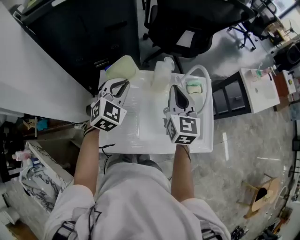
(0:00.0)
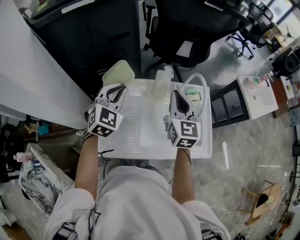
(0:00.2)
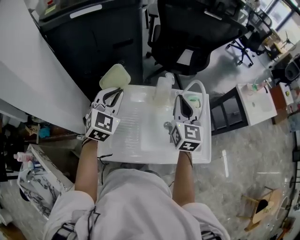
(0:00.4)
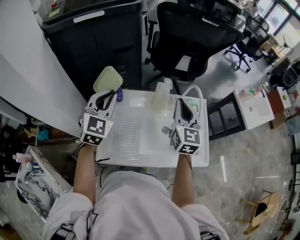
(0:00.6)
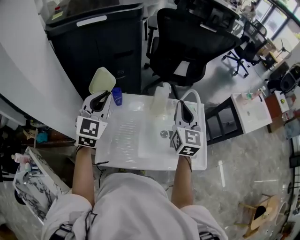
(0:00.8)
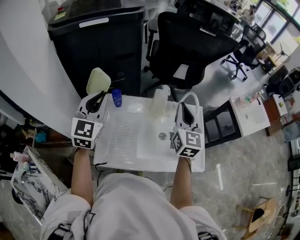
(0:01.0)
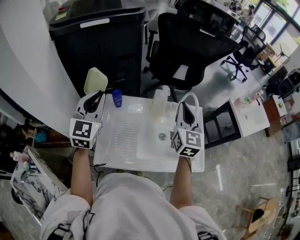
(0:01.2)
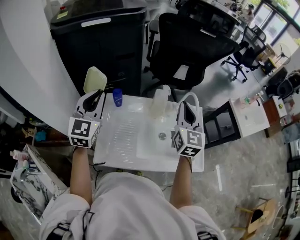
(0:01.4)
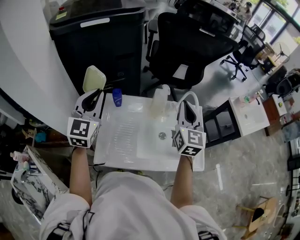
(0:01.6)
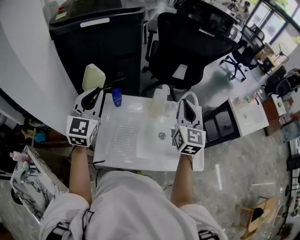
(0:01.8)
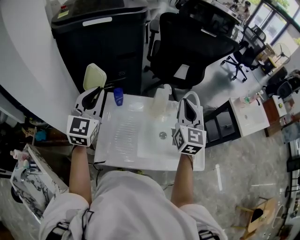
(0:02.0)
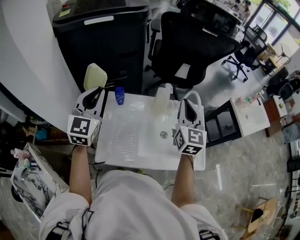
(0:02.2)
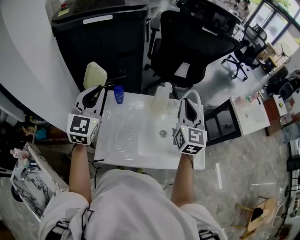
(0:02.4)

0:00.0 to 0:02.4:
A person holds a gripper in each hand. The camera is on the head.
0:00.0 to 0:01.2: The left gripper heads upward, to the left and backward, covering some 20 cm, and changes its angle by approximately 30 degrees, while the right gripper goes about 10 cm upward.
0:01.2 to 0:02.4: The grippers make only small movements.

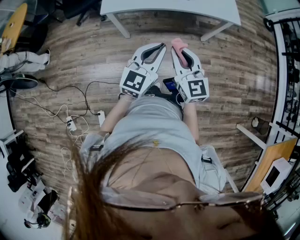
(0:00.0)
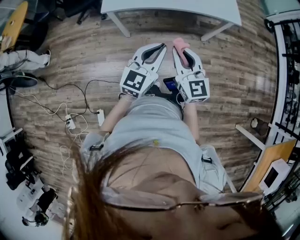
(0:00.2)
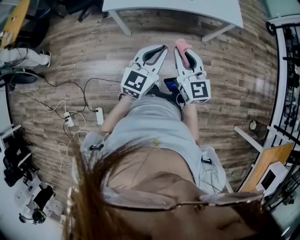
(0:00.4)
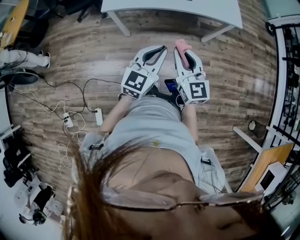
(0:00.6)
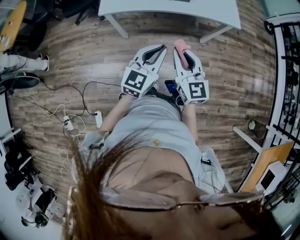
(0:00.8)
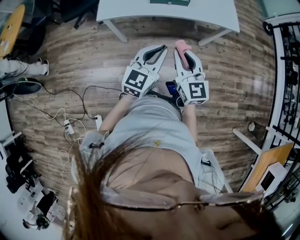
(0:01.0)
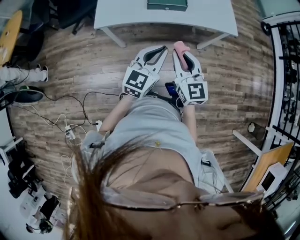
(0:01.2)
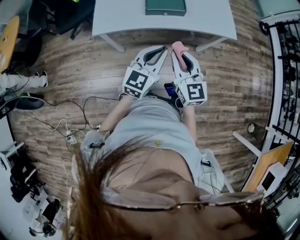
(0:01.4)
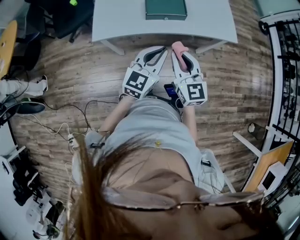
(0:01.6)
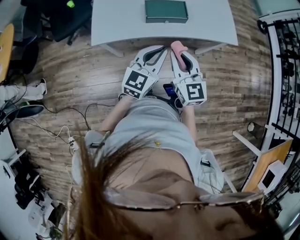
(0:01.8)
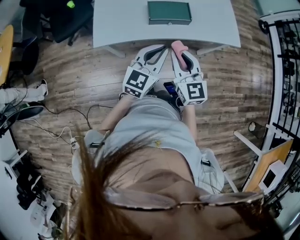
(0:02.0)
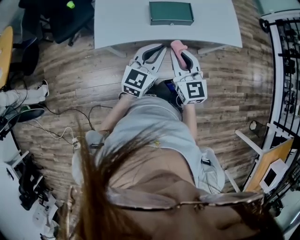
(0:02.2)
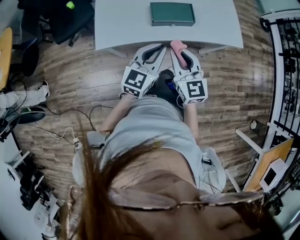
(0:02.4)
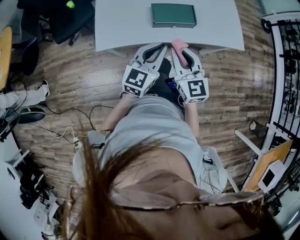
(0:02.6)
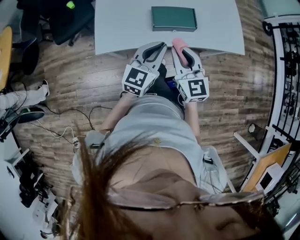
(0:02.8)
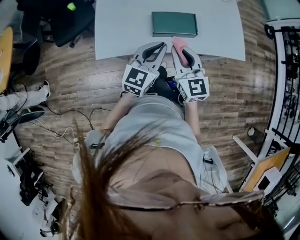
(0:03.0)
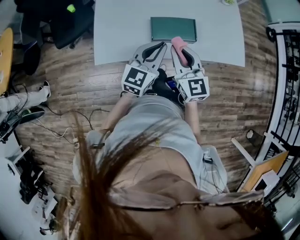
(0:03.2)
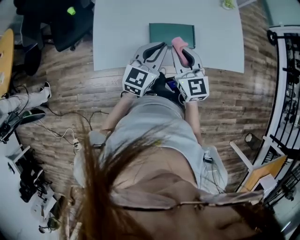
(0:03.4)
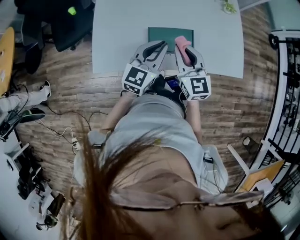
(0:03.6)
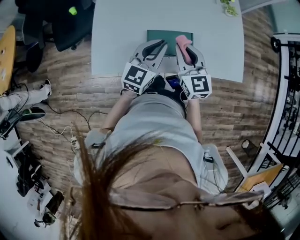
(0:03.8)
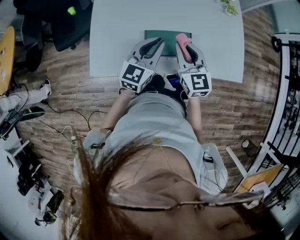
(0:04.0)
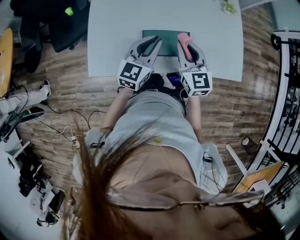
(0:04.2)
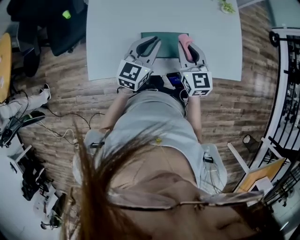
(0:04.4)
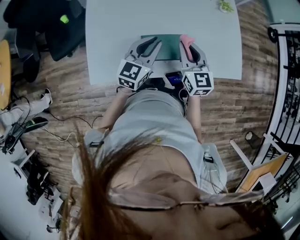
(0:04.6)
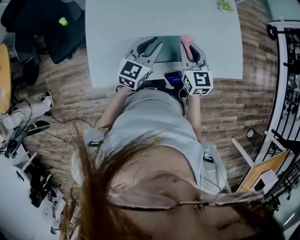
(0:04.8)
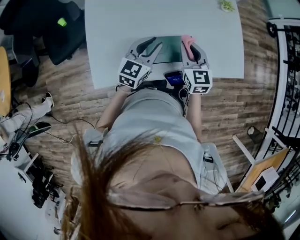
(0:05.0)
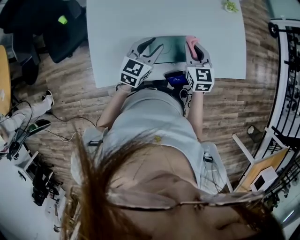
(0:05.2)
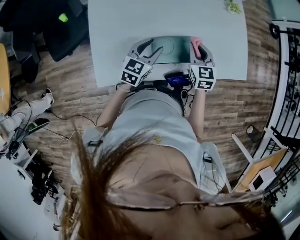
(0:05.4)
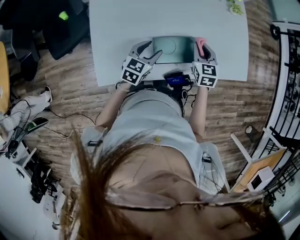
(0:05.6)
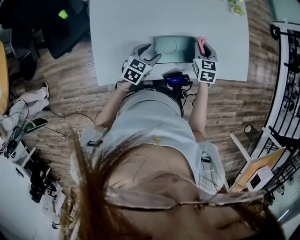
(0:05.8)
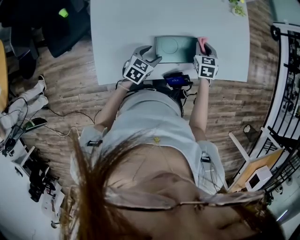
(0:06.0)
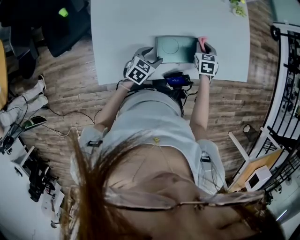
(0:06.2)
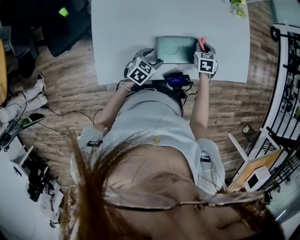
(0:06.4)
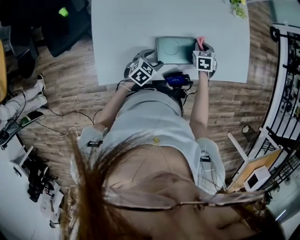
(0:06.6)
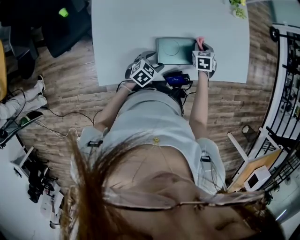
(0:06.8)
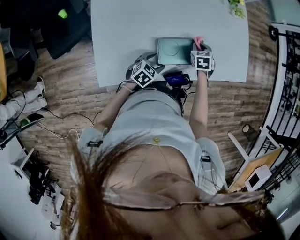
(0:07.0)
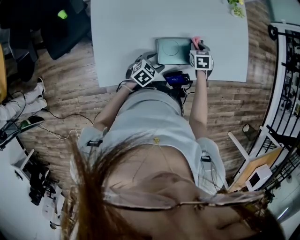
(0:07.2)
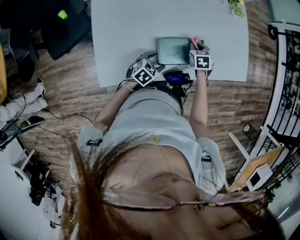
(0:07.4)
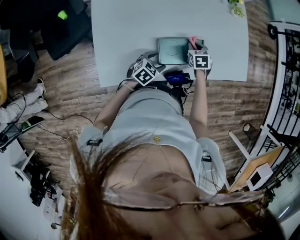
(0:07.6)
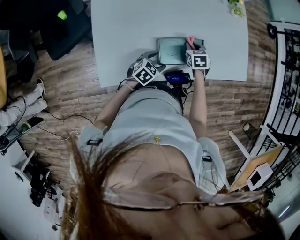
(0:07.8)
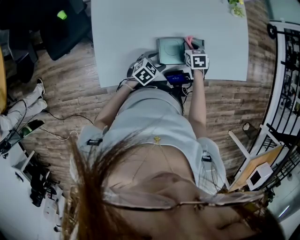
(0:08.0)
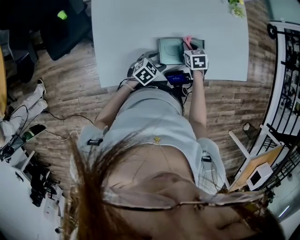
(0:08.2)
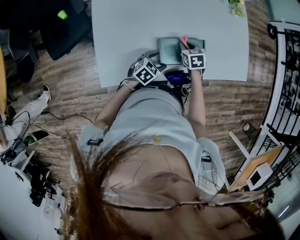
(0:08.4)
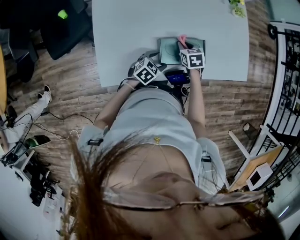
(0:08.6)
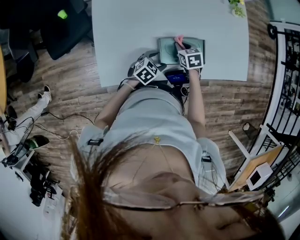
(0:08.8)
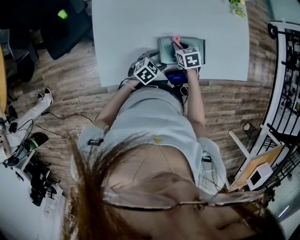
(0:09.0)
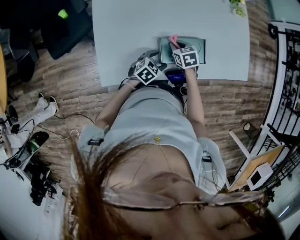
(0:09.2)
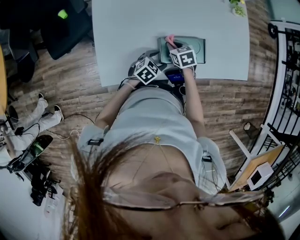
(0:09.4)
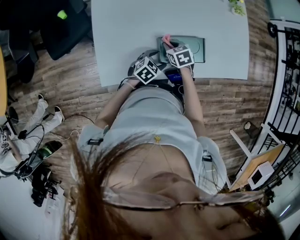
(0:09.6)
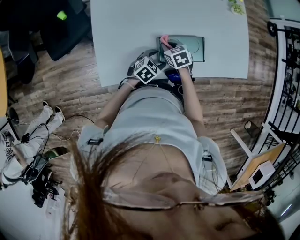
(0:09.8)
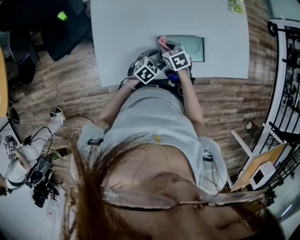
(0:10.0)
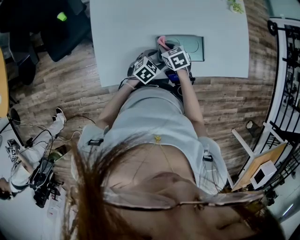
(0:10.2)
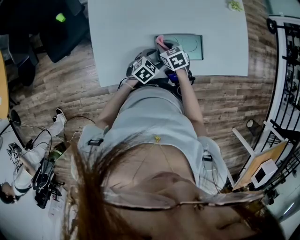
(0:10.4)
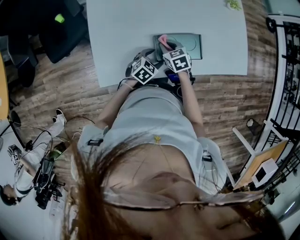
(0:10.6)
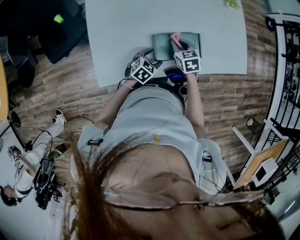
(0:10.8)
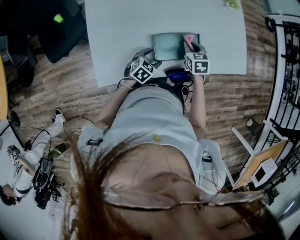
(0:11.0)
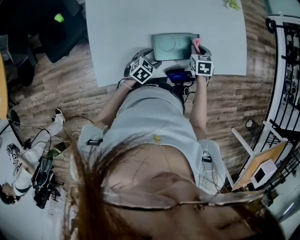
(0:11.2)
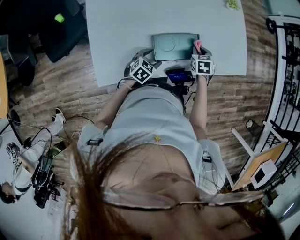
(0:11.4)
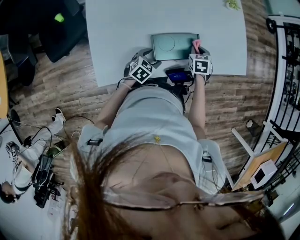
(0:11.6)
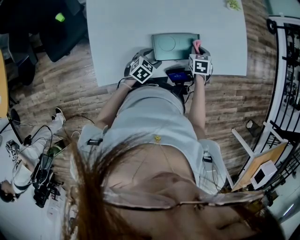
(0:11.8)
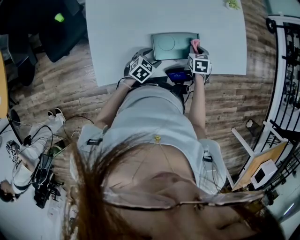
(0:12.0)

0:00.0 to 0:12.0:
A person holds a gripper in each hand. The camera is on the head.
0:00.0 to 0:01.6: Both grippers move forward, about 15 cm.
0:01.6 to 0:03.0: Both grippers travel together forward, about 15 cm.
0:03.0 to 0:04.4: The grippers both shift forward by roughly 15 cm.
0:04.4 to 0:06.0: The left gripper heads downward, covering some 20 cm, swivels roughly 30 degrees, and opens its fingers. Meanwhile the right gripper heads downward and forward, covering approximately 20 cm, and angles its fingers downward, by about 30 degrees.
0:06.0 to 0:07.6: The right gripper moves some 5 cm. The left gripper shifts by about 5 cm.
0:07.6 to 0:09.0: The right gripper shifts roughly 10 cm to the left.
0:09.0 to 0:10.4: The right gripper shifts some 5 cm to the left.
0:10.4 to 0:12.0: The right gripper is displaced to the right by roughly 20 cm, and swivels approximately 30 degrees.

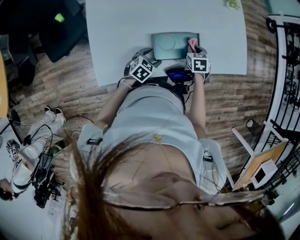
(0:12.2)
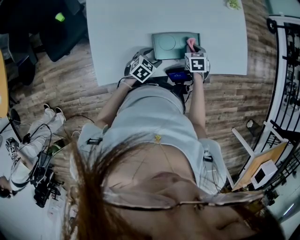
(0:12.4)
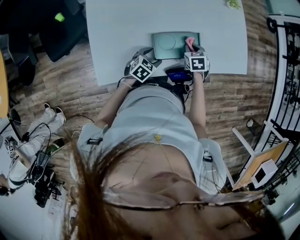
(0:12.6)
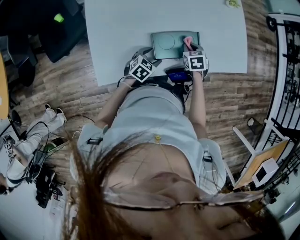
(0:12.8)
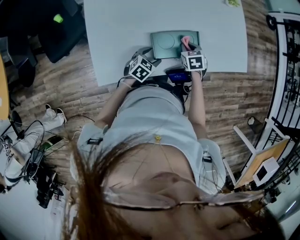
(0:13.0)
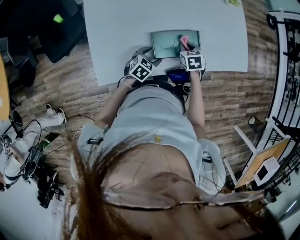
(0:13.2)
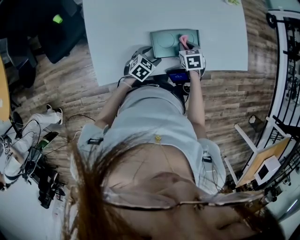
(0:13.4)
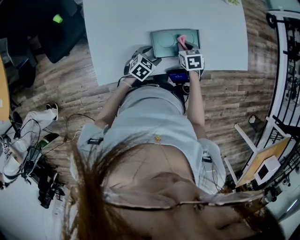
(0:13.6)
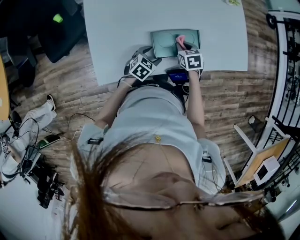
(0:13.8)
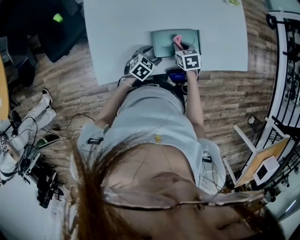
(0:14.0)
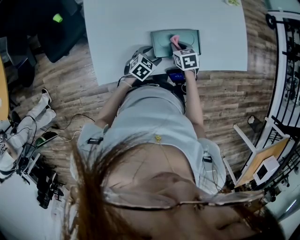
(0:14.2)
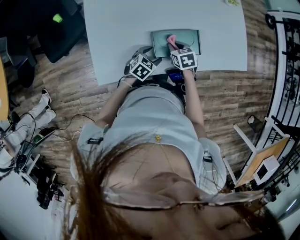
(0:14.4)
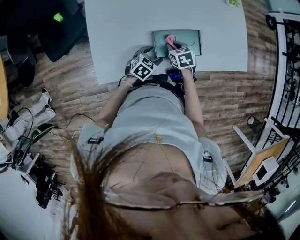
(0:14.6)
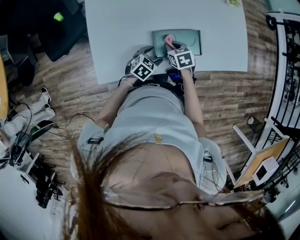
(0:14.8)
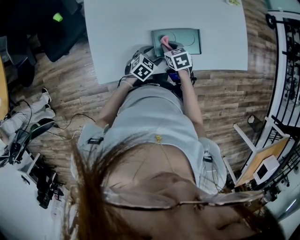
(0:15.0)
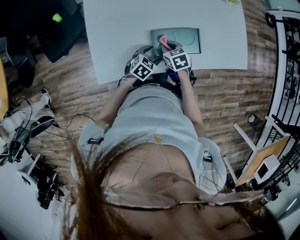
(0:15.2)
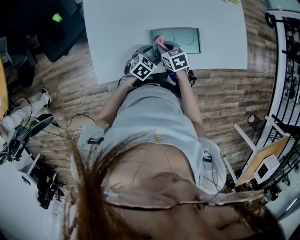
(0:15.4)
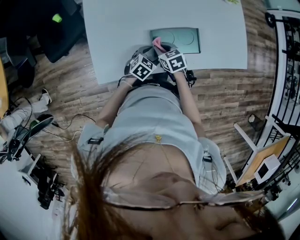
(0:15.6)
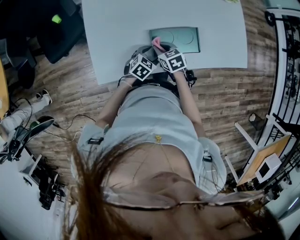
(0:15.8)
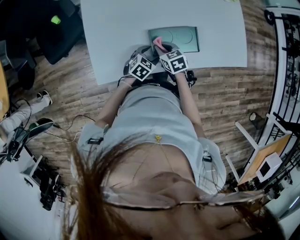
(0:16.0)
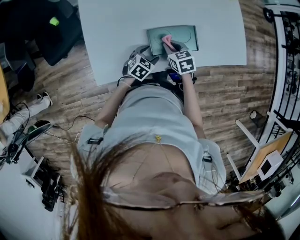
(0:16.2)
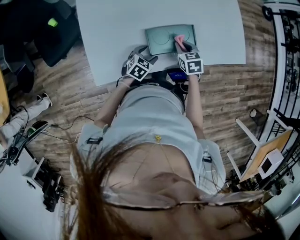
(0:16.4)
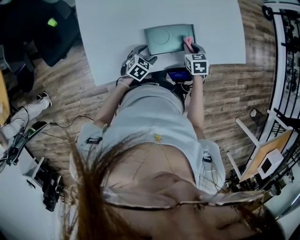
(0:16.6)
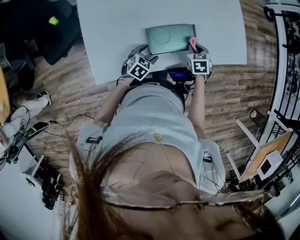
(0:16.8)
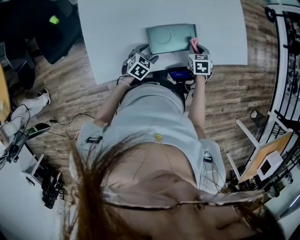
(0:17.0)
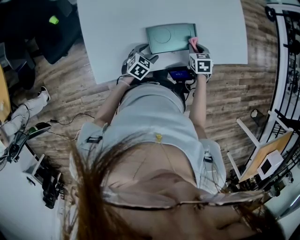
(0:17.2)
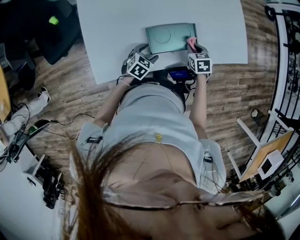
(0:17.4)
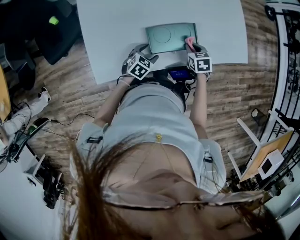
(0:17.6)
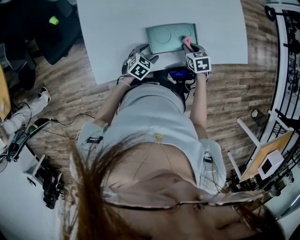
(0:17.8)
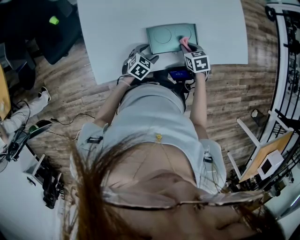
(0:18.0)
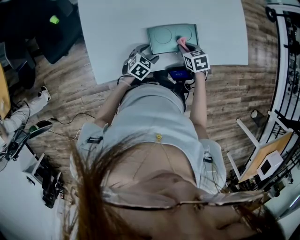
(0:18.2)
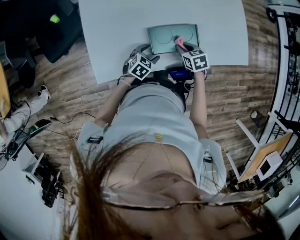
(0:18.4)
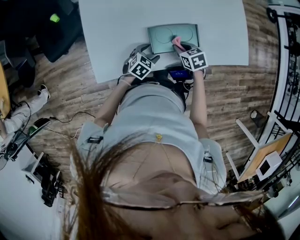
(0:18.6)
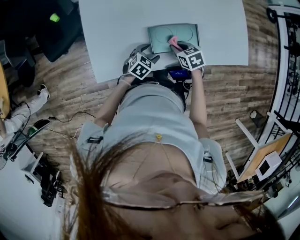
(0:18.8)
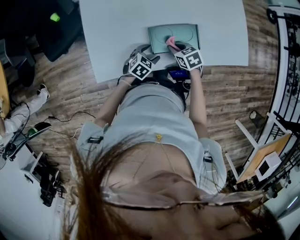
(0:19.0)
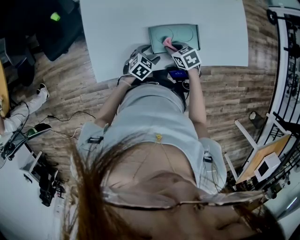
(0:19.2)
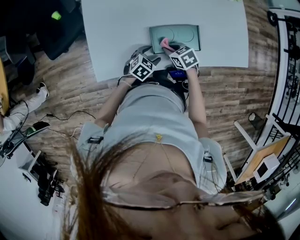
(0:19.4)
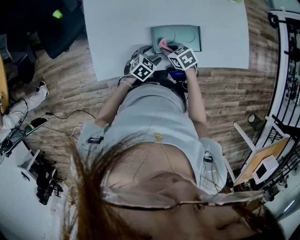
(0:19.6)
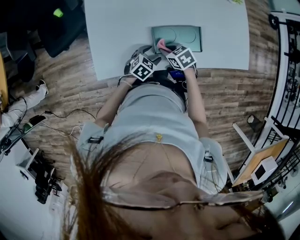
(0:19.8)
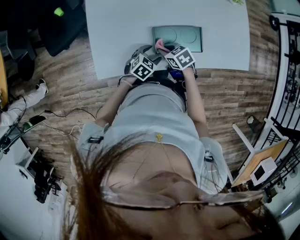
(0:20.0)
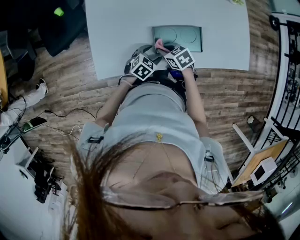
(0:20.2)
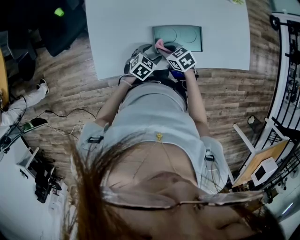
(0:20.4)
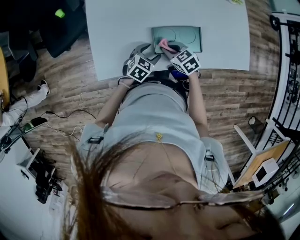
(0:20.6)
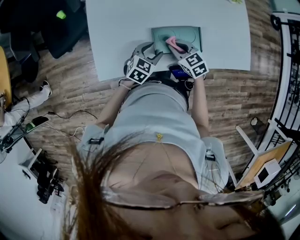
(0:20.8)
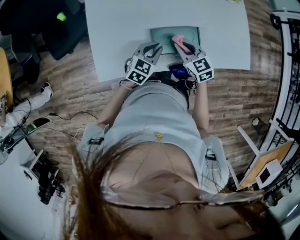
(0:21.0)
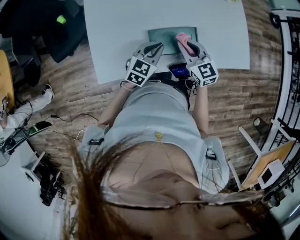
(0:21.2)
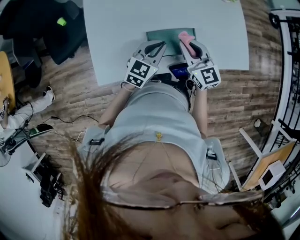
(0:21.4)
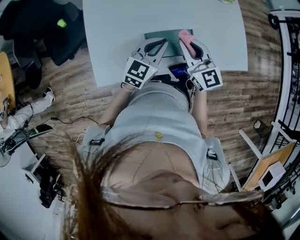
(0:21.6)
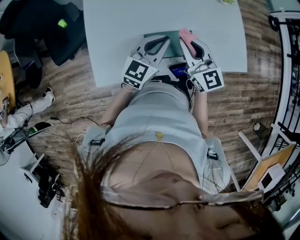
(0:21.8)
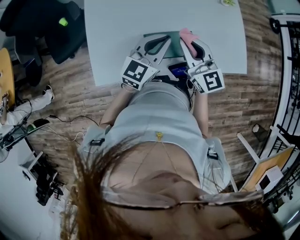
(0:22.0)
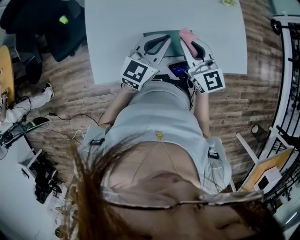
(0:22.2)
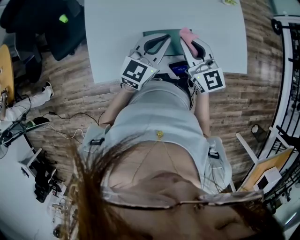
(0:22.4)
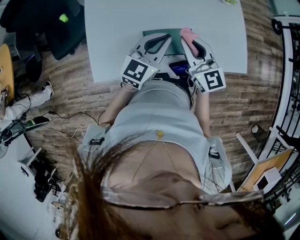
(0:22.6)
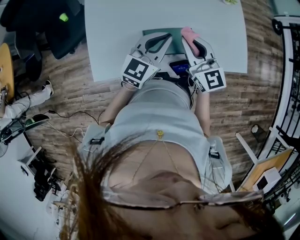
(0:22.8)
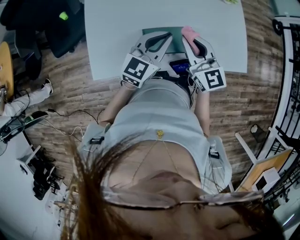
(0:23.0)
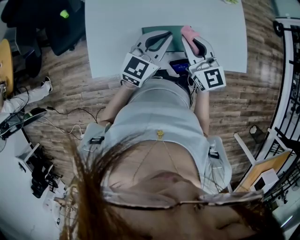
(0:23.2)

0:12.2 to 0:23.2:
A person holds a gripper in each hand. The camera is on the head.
0:12.2 to 0:13.8: The right gripper travels to the left by approximately 5 cm.
0:13.8 to 0:15.4: The right gripper goes some 10 cm to the left.
0:15.4 to 0:17.0: The right gripper heads to the right, covering approximately 20 cm, and rotates approximately 30 degrees.
0:17.0 to 0:18.4: The right gripper travels to the left by approximately 10 cm, and turns by approximately 20 degrees.
0:18.4 to 0:20.0: The right gripper ends up about 10 cm from where it was, and rotates roughly 20 degrees.
0:20.0 to 0:21.6: The grippers both shift upward by roughly 20 cm. The left gripper tilts its fingers some 30 degrees upward, and closes its fingers, while the right gripper angles its fingers upward, by approximately 50 degrees.
0:21.6 to 0:23.2: The left gripper is displaced upward by approximately 5 cm.
